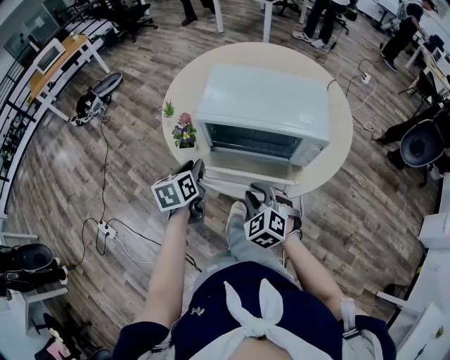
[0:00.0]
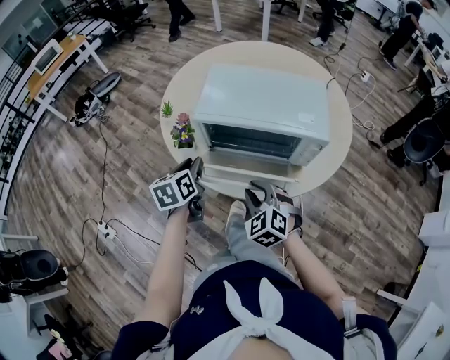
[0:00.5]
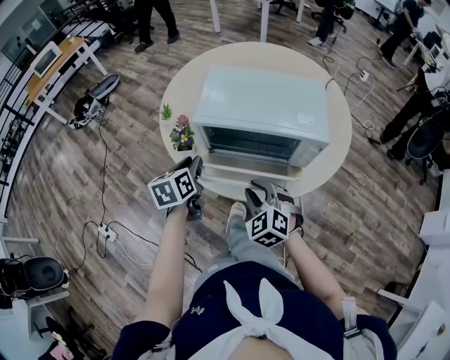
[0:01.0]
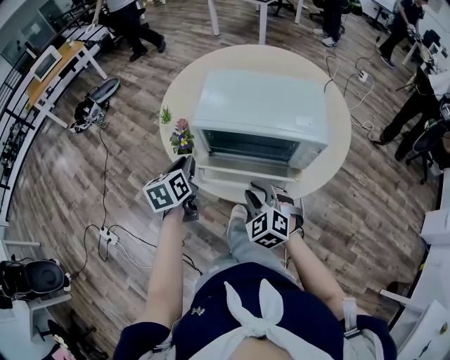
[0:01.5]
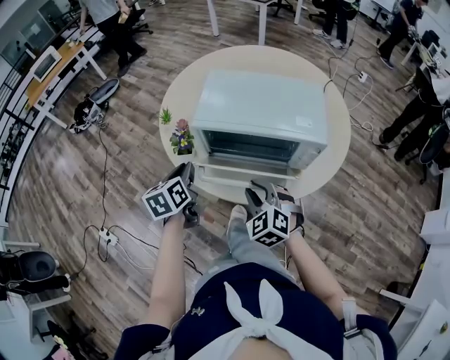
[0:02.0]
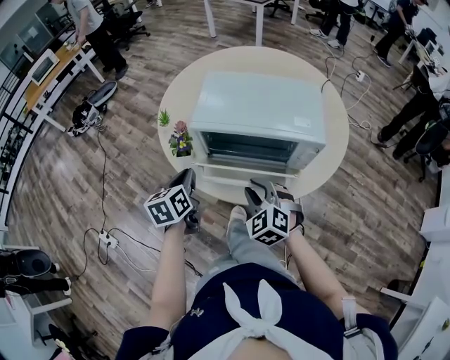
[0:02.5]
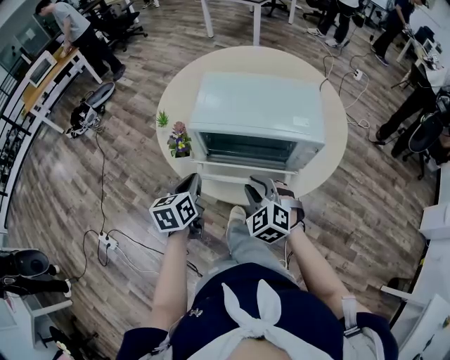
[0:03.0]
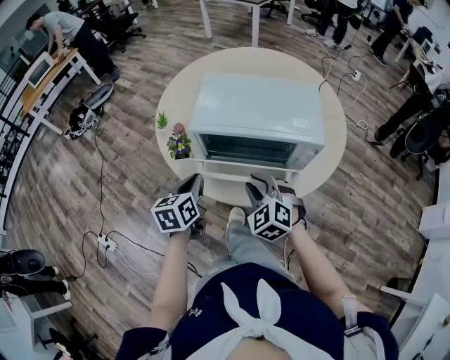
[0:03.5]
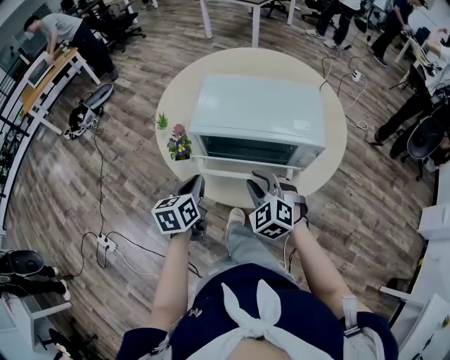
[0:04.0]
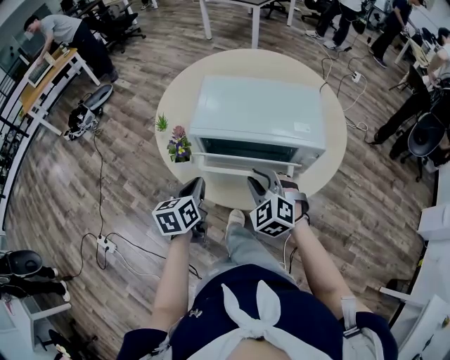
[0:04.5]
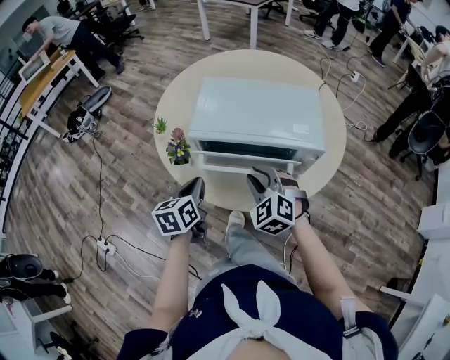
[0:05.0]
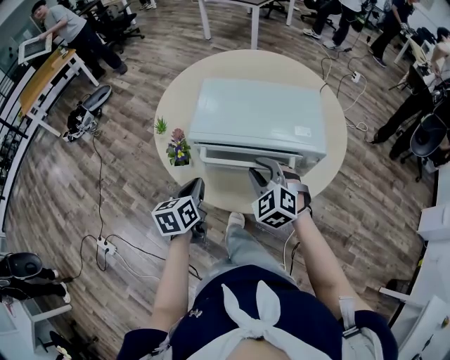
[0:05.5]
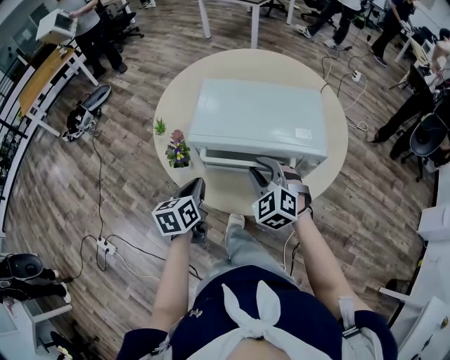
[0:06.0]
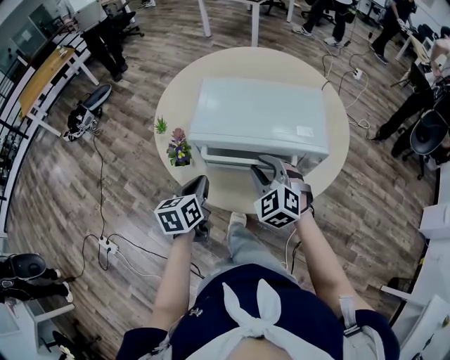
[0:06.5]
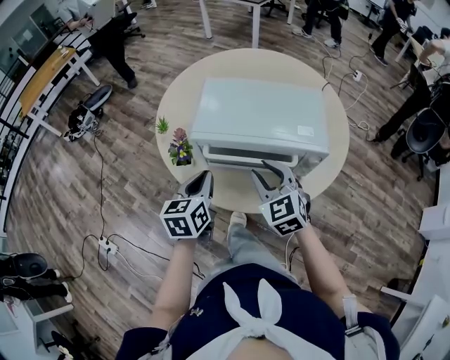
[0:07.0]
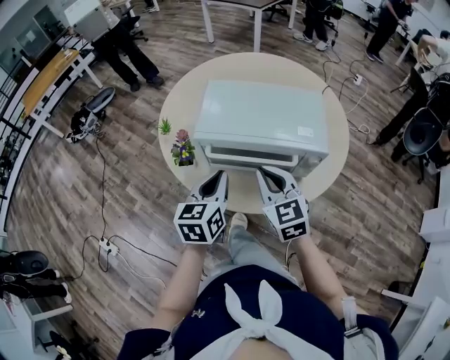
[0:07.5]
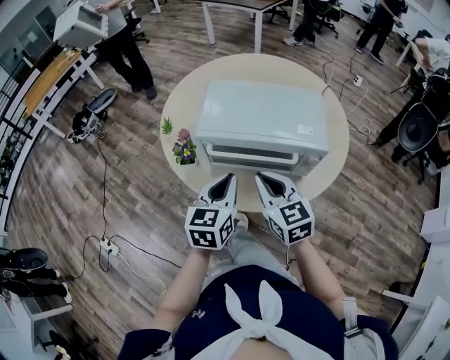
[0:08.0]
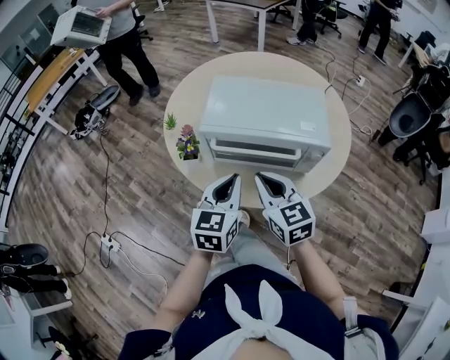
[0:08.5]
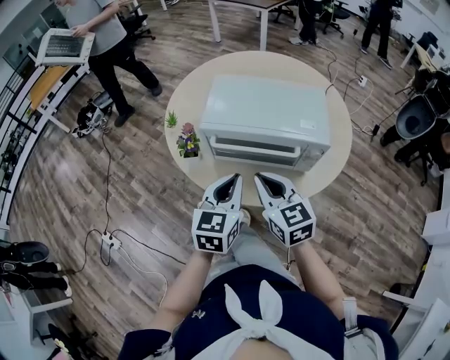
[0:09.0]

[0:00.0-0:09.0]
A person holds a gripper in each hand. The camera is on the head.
0:00.0 to 0:02.0: The grippers stay close to where they were, moving slightly.
0:02.0 to 0:04.5: The right gripper changes place by roughly 5 cm.
0:04.5 to 0:07.0: The right gripper swivels approximately 20 degrees; the left gripper ends up approximately 5 cm from where it was.
0:07.0 to 0:09.0: The left gripper goes about 10 cm to the right and backward; the right gripper goes roughly 5 cm backward, rotates roughly 20 degrees, and closes up.

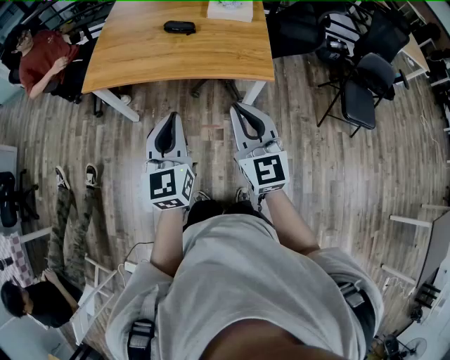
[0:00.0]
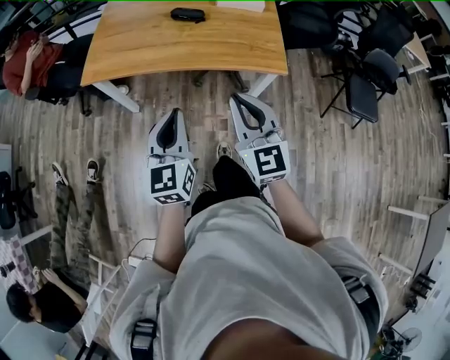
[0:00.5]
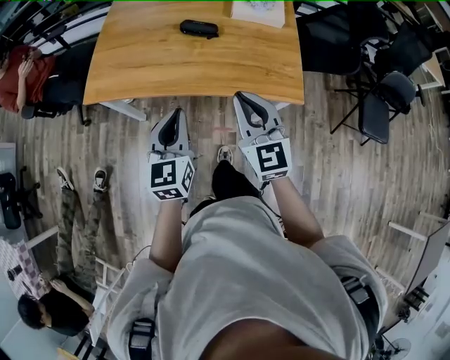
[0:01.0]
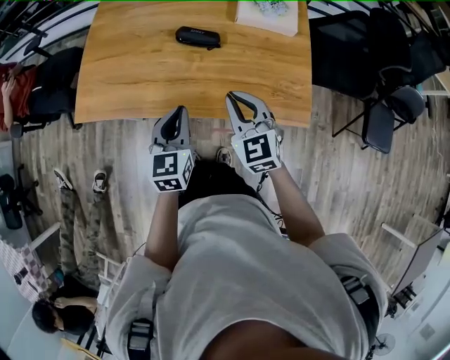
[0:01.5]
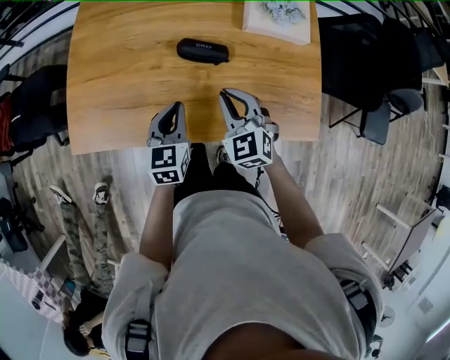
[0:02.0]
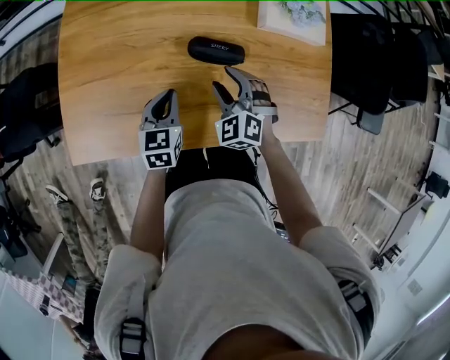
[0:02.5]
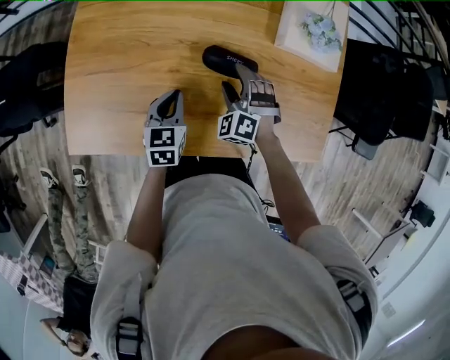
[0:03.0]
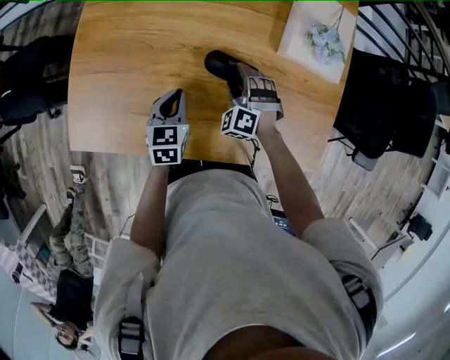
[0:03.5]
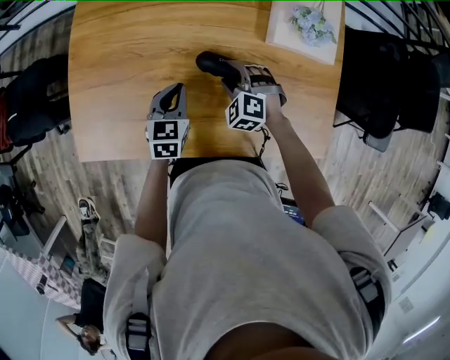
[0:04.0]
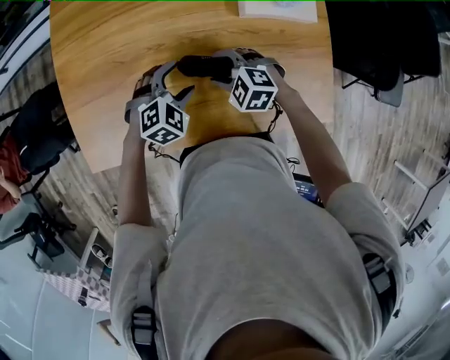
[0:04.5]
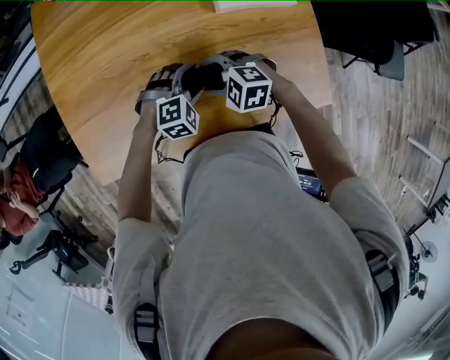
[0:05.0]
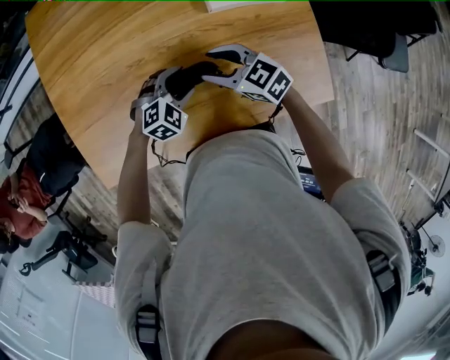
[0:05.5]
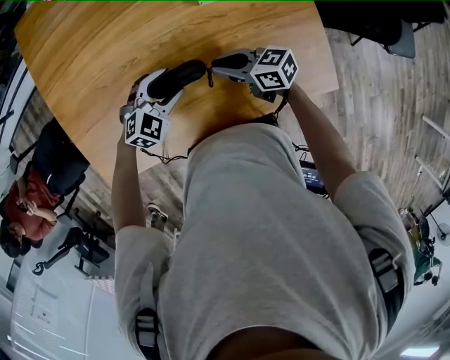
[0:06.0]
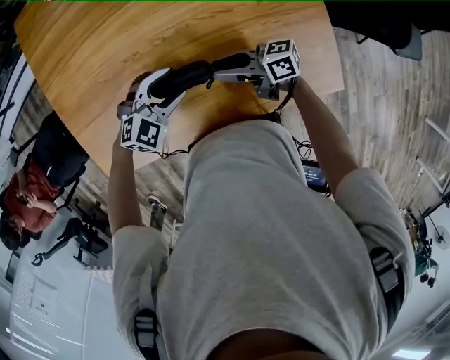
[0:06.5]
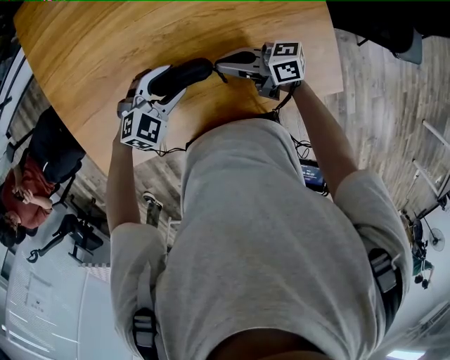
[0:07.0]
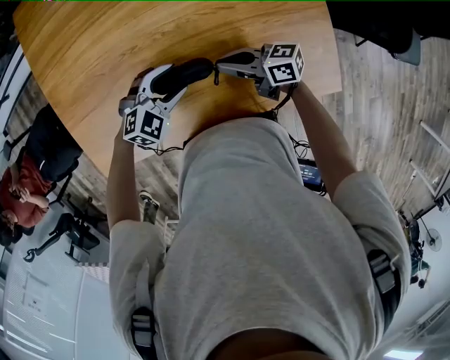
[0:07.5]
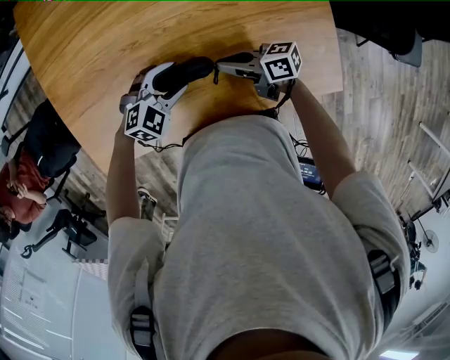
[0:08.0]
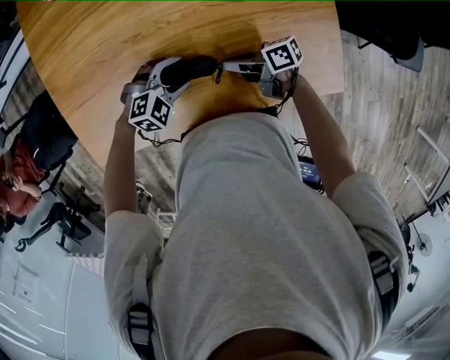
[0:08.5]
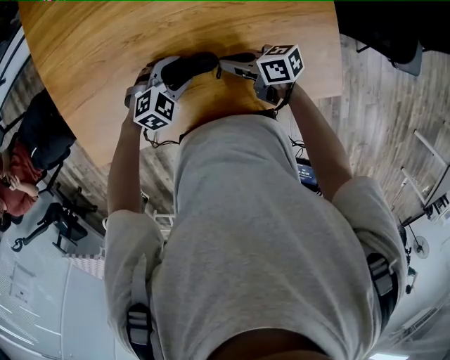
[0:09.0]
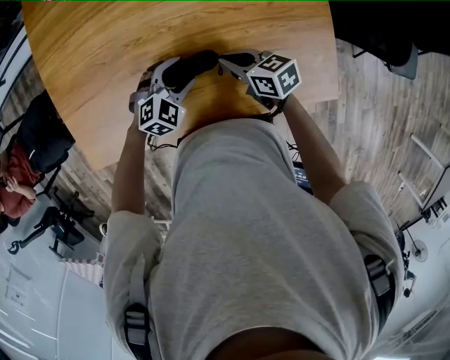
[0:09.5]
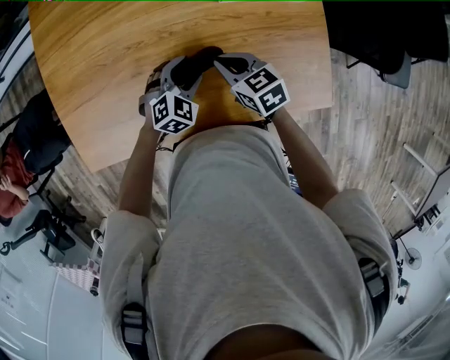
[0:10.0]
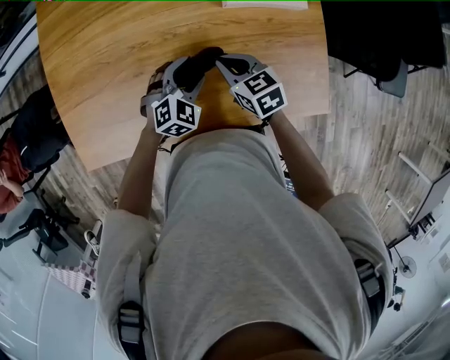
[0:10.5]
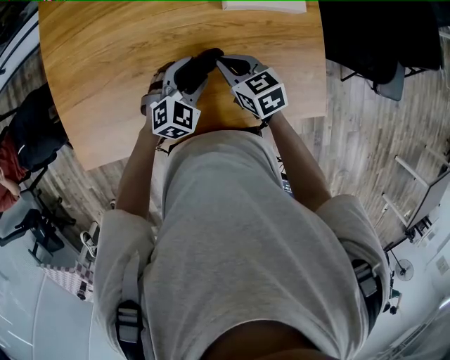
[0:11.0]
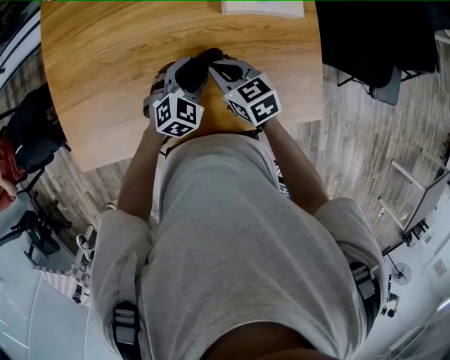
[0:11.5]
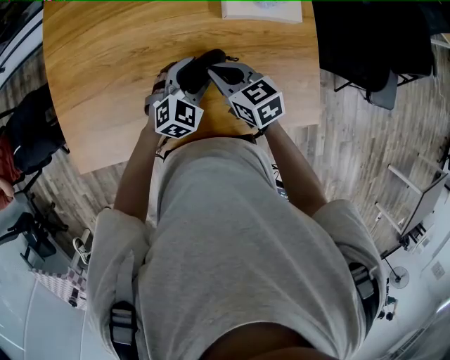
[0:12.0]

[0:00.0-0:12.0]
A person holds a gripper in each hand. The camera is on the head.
0:00.0 to 0:02.0: Both grippers are carried forward, some 50 cm. The two grippers go approximately 20 cm downward. The right gripper turns by approximately 30 degrees. Meanwhile the left gripper swivels approximately 30 degrees.
0:02.0 to 0:04.0: The right gripper shifts roughly 20 cm downward and forward, turns by approximately 40 degrees, and opens; the left gripper is displaced forward and downward by roughly 15 cm.
0:04.0 to 0:06.0: The left gripper moves approximately 10 cm, rolls clockwise, seen from behind, by some 60 degrees, and opens up; the right gripper moves about 10 cm, rolls clockwise, seen from behind, by approximately 70 degrees, and closes up.
0:08.0 to 0:10.0: The right gripper swivels roughly 50 degrees.
0:10.0 to 0:12.0: The left gripper ends up some 5 cm from where it was.

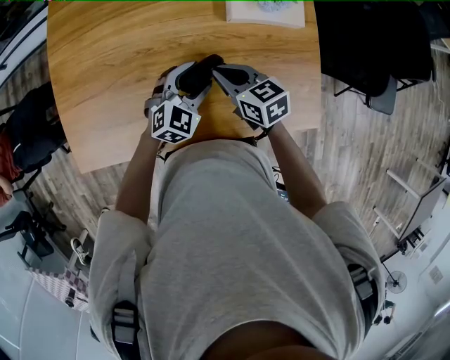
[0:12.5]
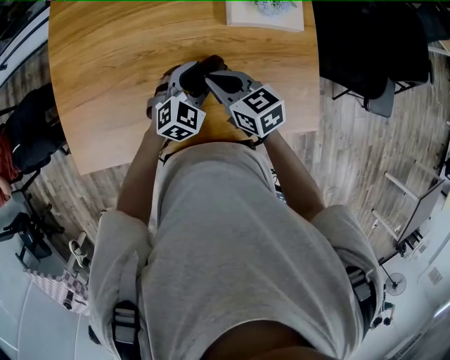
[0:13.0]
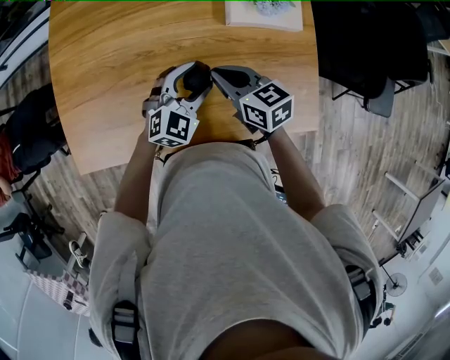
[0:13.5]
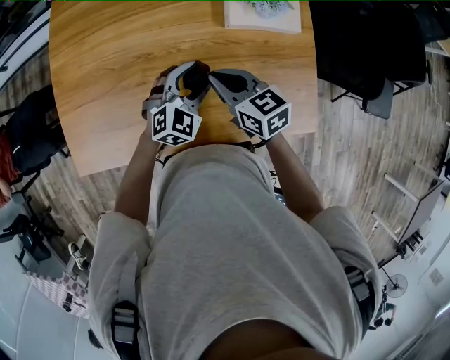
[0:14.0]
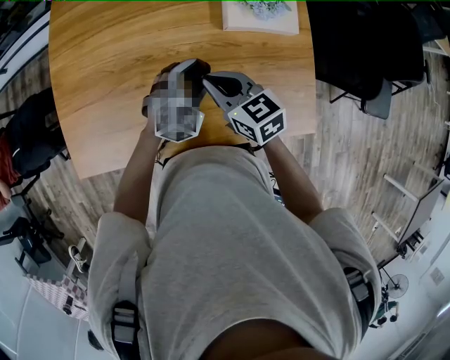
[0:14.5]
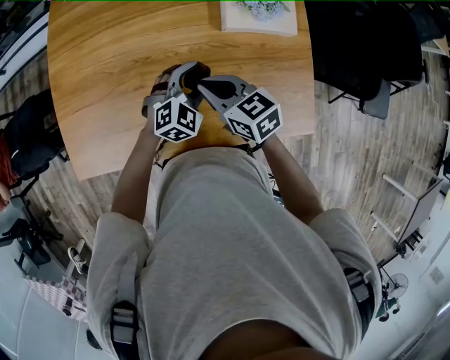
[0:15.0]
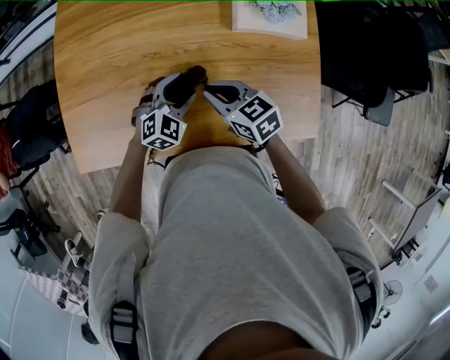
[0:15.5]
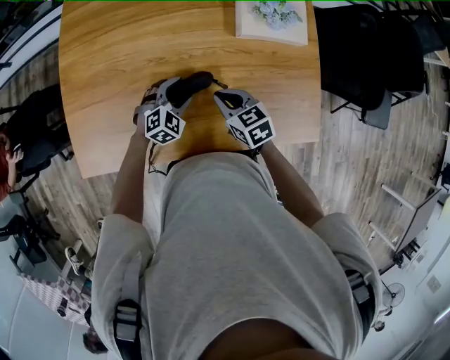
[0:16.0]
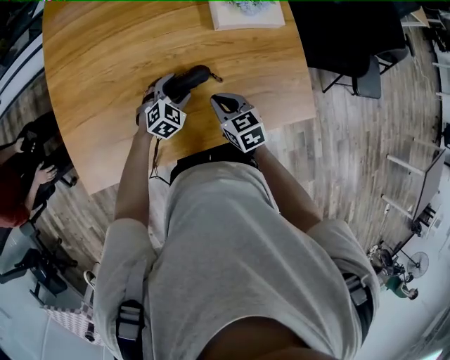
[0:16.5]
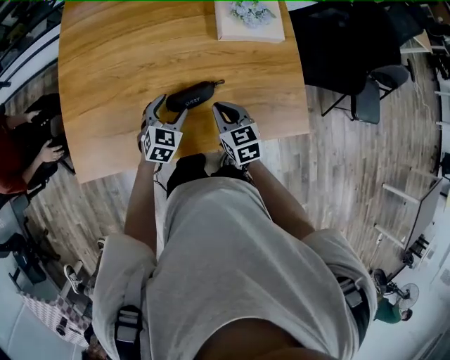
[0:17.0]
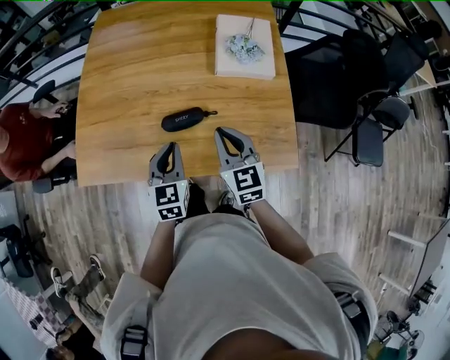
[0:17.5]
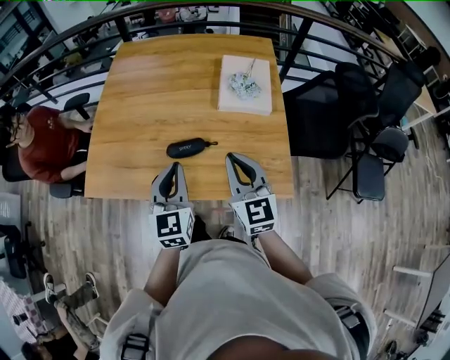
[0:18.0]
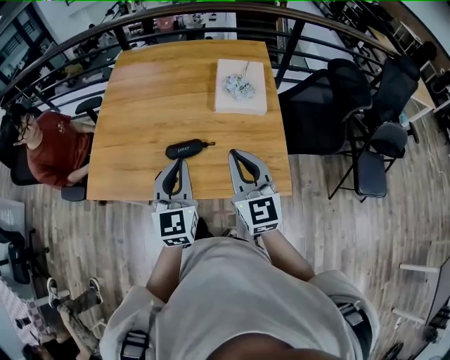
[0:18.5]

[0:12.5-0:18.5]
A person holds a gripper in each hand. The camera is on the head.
0:12.5 to 0:14.5: The right gripper is displaced upward by roughly 5 cm.
0:14.5 to 0:16.5: The right gripper moves downward and backward, some 10 cm; the left gripper travels downward and to the left by about 15 cm.
0:16.5 to 0:18.5: The right gripper goes roughly 35 cm upward, to the right and backward, and tilts its fingers roughly 40 degrees upward. The left gripper moves upward and backward, about 40 cm, angles its fingers upward, by approximately 40 degrees, and closes.
